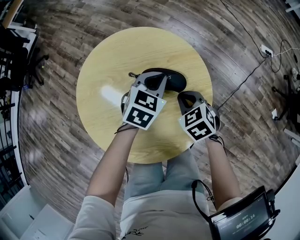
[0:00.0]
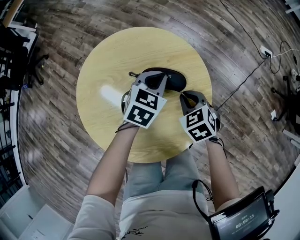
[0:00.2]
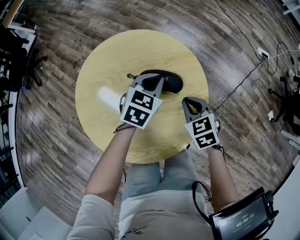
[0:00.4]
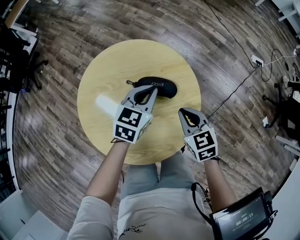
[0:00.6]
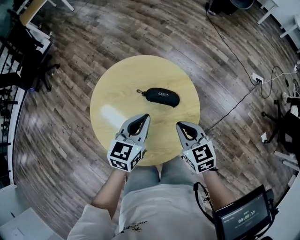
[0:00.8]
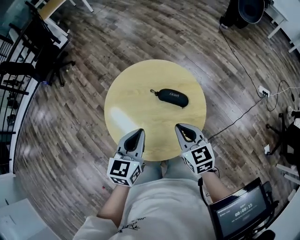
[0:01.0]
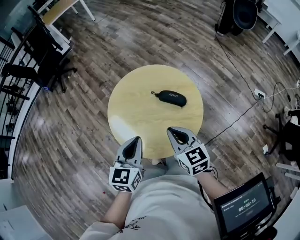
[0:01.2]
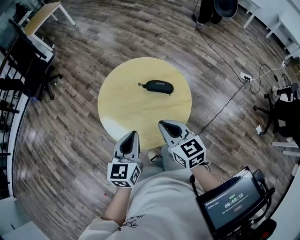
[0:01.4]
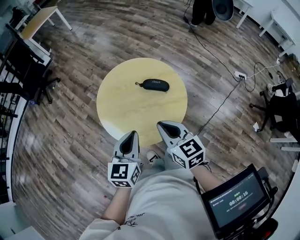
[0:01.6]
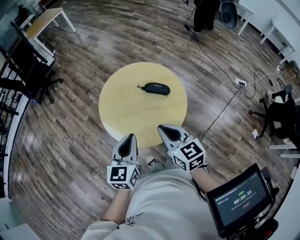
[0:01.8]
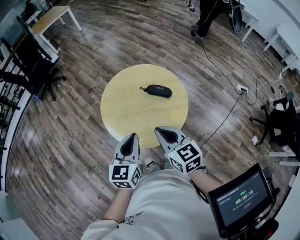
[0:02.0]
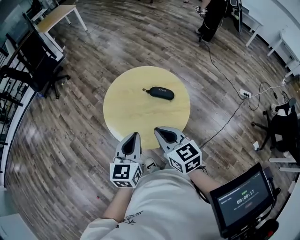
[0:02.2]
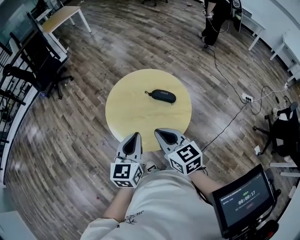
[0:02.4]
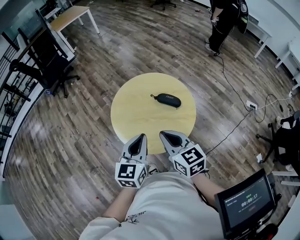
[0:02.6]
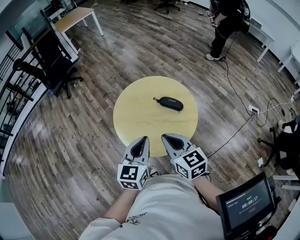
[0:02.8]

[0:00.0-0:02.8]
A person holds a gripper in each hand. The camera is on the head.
0:00.0 to 0:01.4: The right gripper shifts some 30 cm upward and backward, and tilts its fingers approximately 40 degrees upward. Meanwhile the left gripper travels backward, upward and to the left by roughly 40 cm, and changes its angle by some 40 degrees.
0:01.4 to 0:02.8: Both grippers travel together upward, approximately 5 cm.

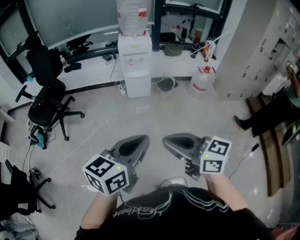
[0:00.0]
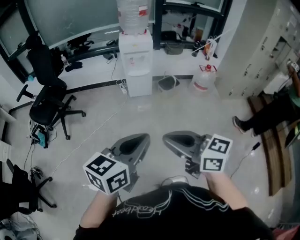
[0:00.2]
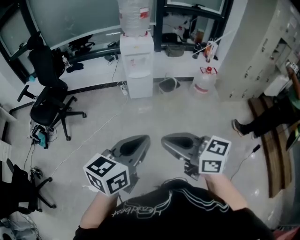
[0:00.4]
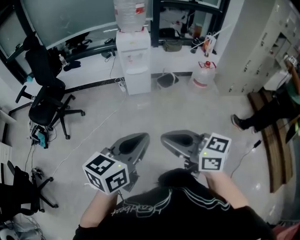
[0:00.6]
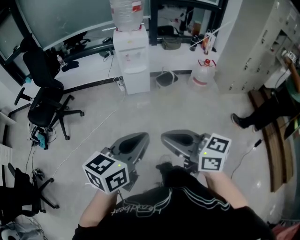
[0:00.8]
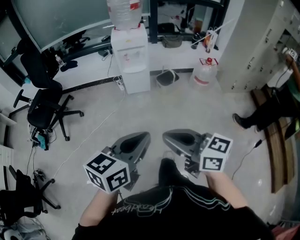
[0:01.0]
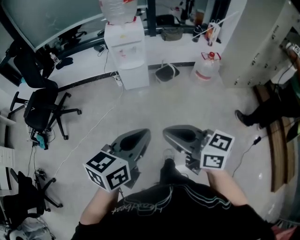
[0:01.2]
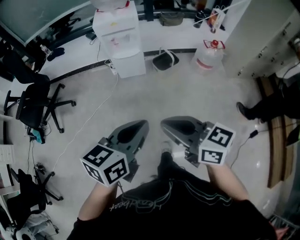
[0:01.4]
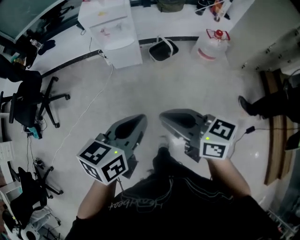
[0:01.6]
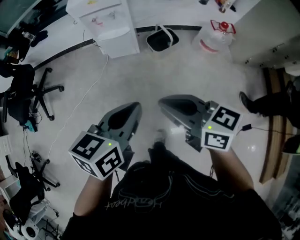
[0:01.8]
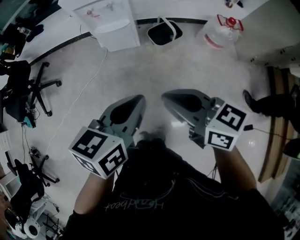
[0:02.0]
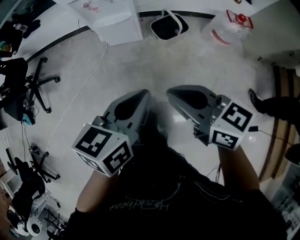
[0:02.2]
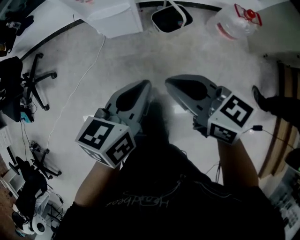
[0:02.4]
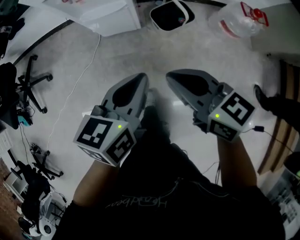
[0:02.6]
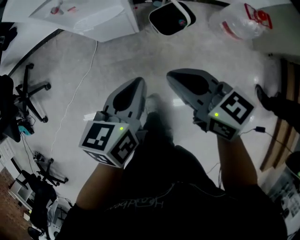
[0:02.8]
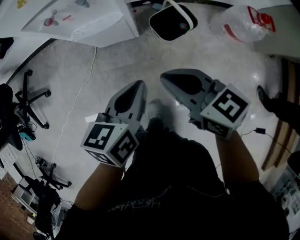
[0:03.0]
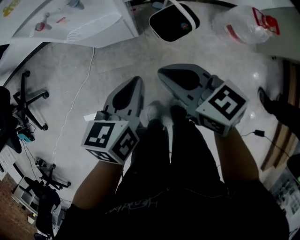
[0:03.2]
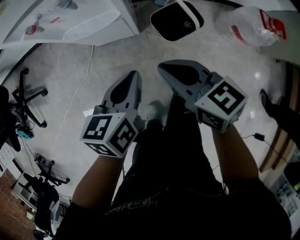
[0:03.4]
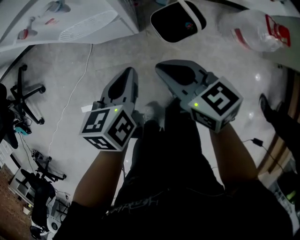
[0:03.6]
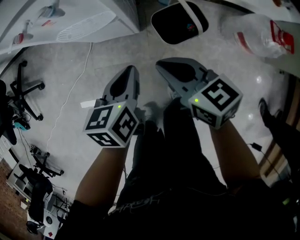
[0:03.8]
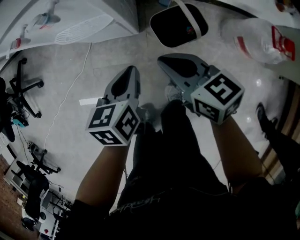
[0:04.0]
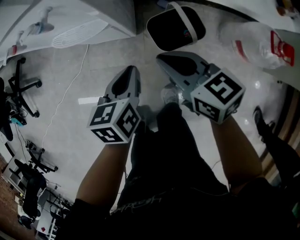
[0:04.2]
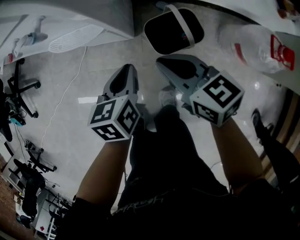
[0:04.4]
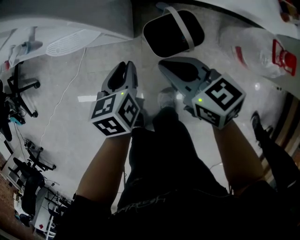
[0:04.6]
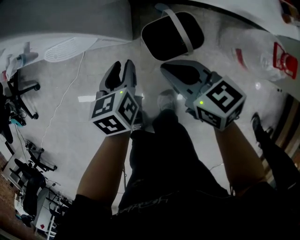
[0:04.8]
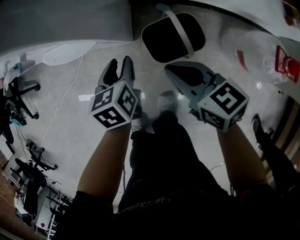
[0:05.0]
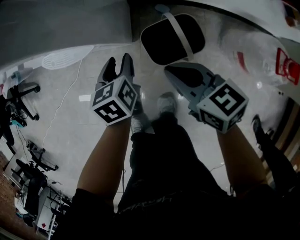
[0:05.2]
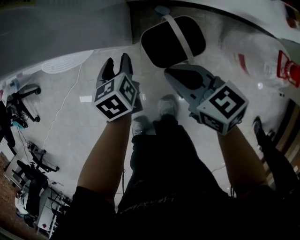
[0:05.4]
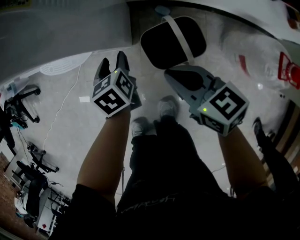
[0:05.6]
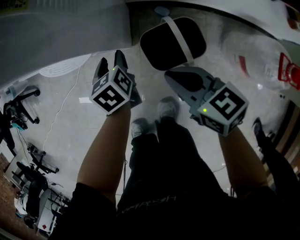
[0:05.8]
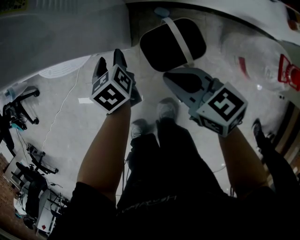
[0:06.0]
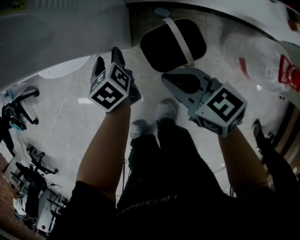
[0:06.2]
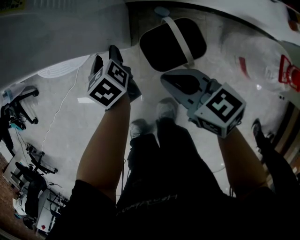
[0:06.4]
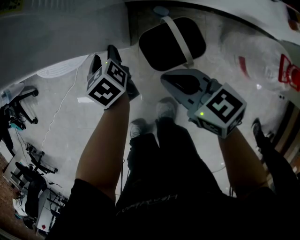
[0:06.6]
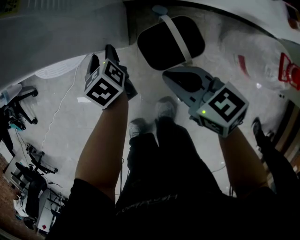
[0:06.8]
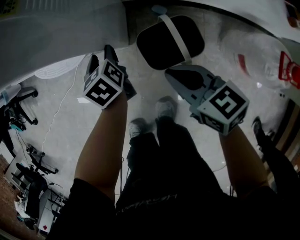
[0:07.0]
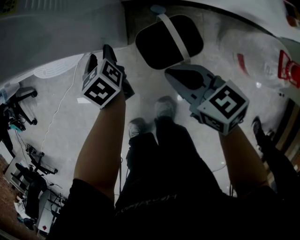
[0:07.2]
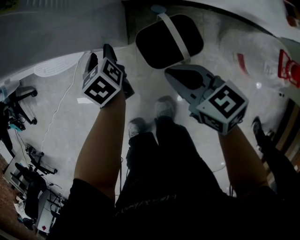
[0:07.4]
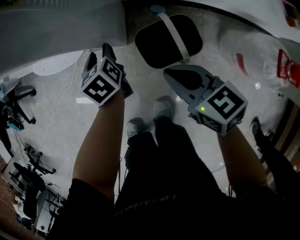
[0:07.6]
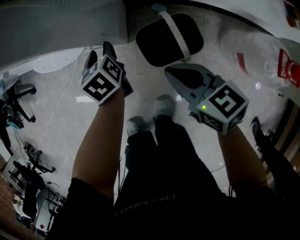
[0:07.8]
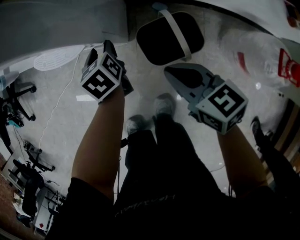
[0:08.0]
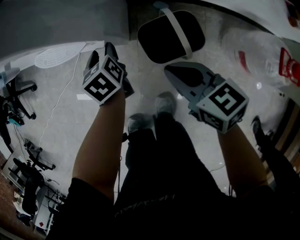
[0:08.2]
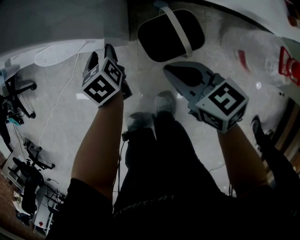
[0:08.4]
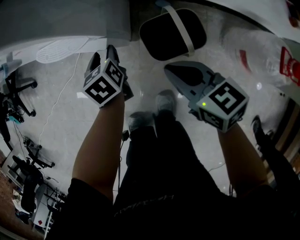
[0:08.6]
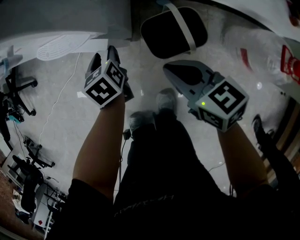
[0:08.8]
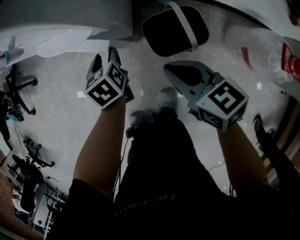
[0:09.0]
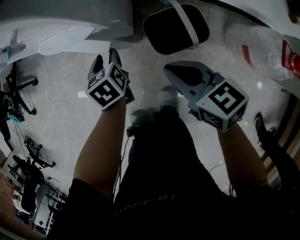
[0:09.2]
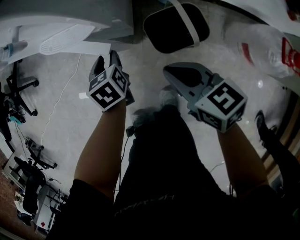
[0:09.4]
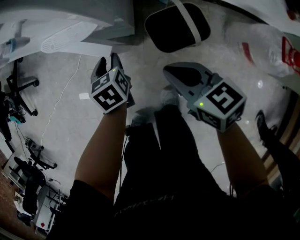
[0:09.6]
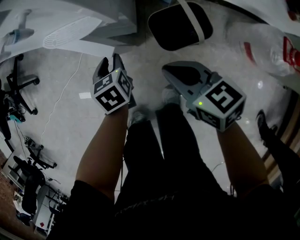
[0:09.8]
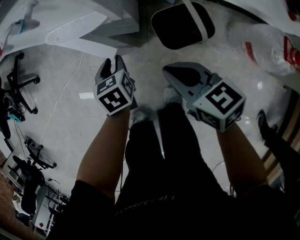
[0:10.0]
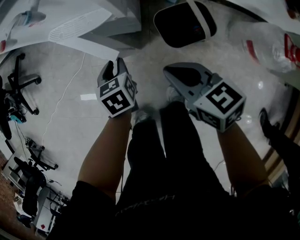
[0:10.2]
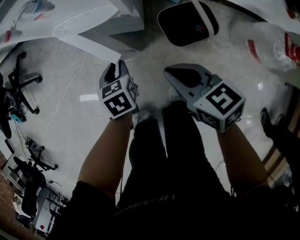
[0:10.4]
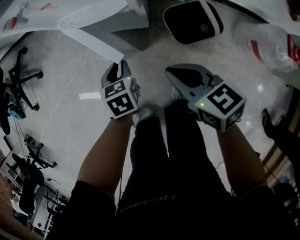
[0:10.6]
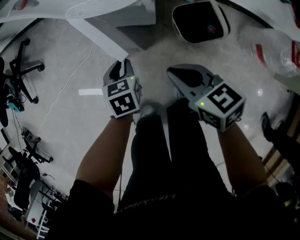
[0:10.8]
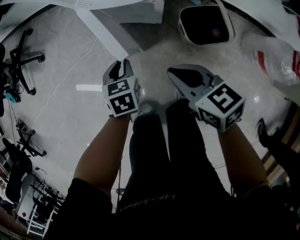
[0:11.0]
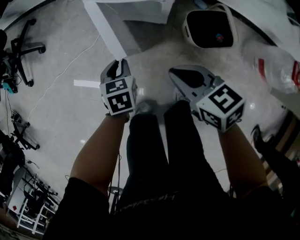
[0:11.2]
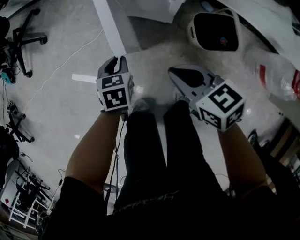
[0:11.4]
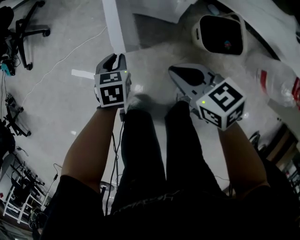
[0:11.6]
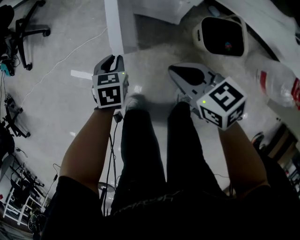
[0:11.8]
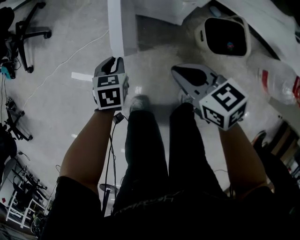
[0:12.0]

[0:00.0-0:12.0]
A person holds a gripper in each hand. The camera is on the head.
0:00.0 to 0:01.6: Both grippers move forward, to the right and downward, roughly 35 cm.
0:01.6 to 0:03.0: The two grippers go roughly 40 cm forward and downward.
0:03.0 to 0:04.4: The right gripper is displaced forward, downward and to the right by about 20 cm. Meanwhile the left gripper goes about 20 cm downward, forward and to the right, and swivels about 20 degrees.
0:04.4 to 0:06.0: The right gripper heads downward and to the right, covering about 10 cm. The left gripper is displaced forward and downward by about 15 cm, turns by roughly 20 degrees, and opens its fingers.
0:06.0 to 0:07.6: The grippers stay close to where they were, moving slightly.
0:07.6 to 0:09.0: The left gripper moves approximately 5 cm.
0:09.0 to 0:10.4: The right gripper goes some 10 cm to the left, while the left gripper heads to the left and backward, covering roughly 10 cm, and closes.
0:10.4 to 0:12.0: The two grippers go approximately 15 cm to the left.

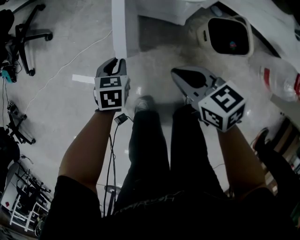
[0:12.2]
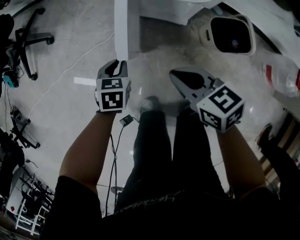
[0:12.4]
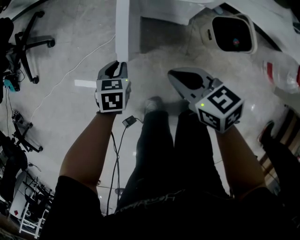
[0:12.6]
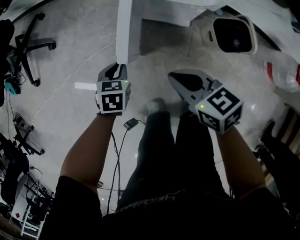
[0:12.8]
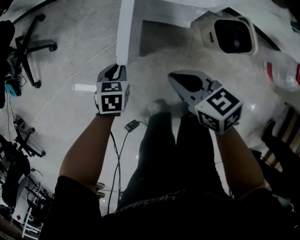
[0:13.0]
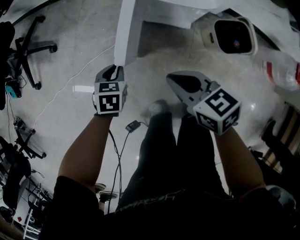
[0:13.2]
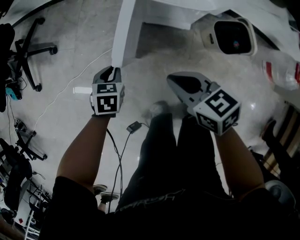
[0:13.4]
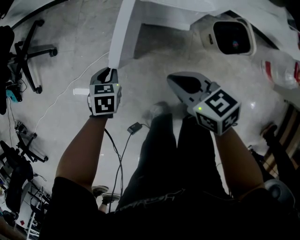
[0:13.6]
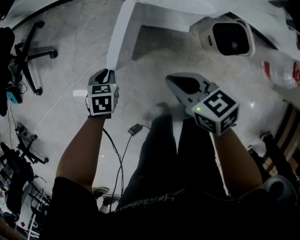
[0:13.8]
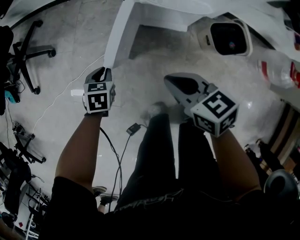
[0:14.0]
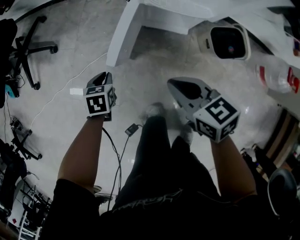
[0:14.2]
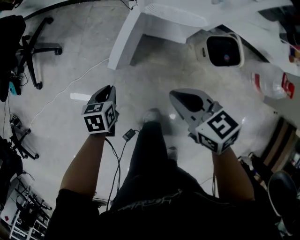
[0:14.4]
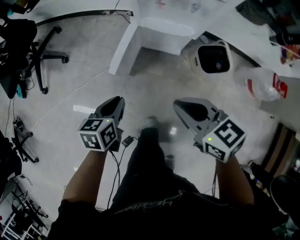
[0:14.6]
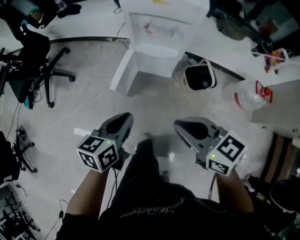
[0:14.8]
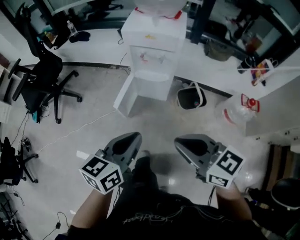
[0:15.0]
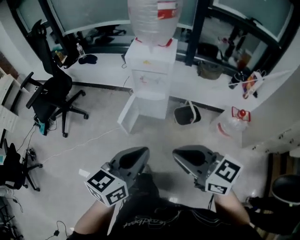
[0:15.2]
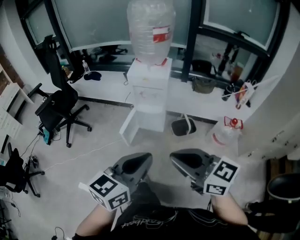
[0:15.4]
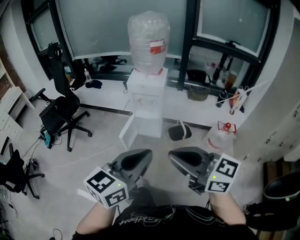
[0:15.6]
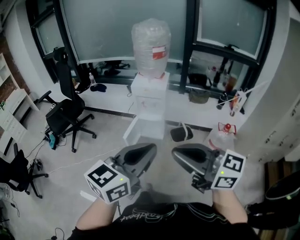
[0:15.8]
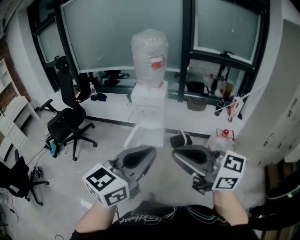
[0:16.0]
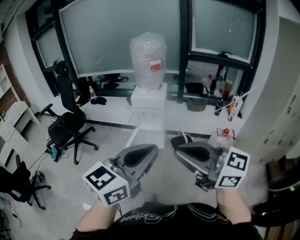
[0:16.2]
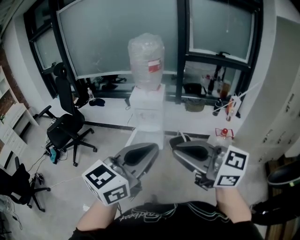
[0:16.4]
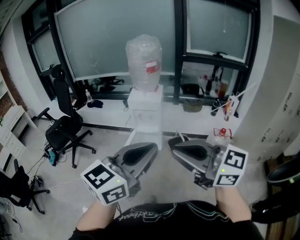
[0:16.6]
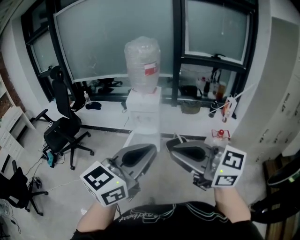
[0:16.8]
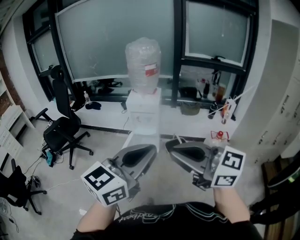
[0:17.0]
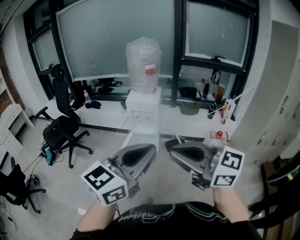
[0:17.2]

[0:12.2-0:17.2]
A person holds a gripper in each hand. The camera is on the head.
0:12.2 to 0:13.8: The grippers both shift to the left and forward by roughly 10 cm.
0:13.8 to 0:15.6: The pair of grippers is taken backward, about 50 cm. Both grippers travel together upward, approximately 70 cm. The right gripper tips its fingers upward by approximately 40 degrees, while the left gripper angles its fingers upward, by about 60 degrees.
0:15.6 to 0:17.2: The two grippers go some 15 cm upward and backward.

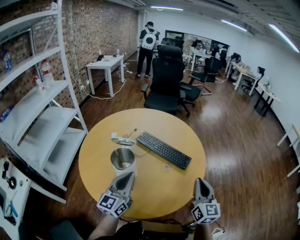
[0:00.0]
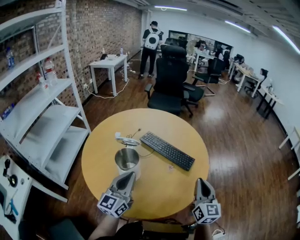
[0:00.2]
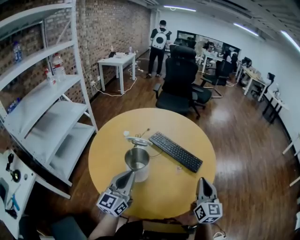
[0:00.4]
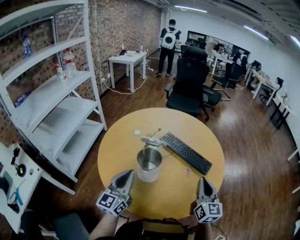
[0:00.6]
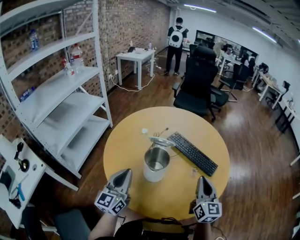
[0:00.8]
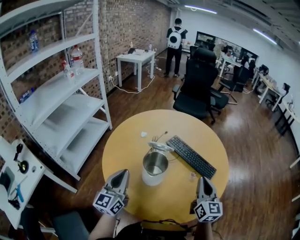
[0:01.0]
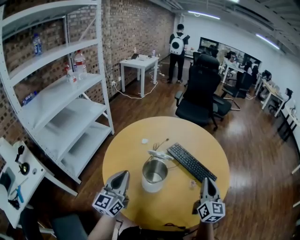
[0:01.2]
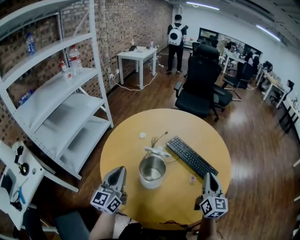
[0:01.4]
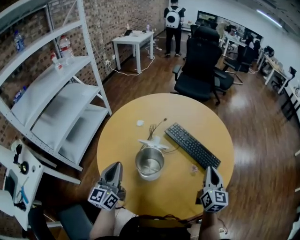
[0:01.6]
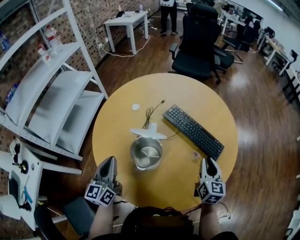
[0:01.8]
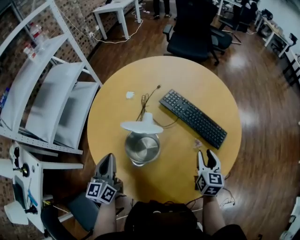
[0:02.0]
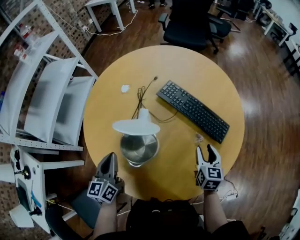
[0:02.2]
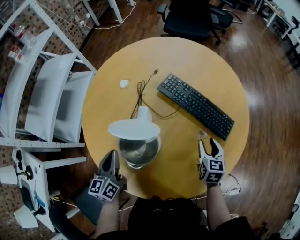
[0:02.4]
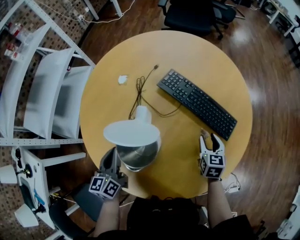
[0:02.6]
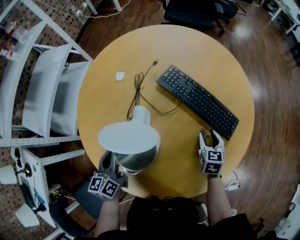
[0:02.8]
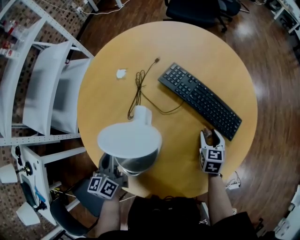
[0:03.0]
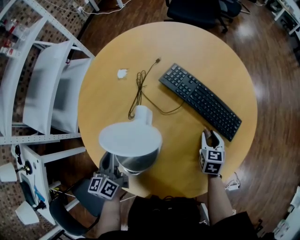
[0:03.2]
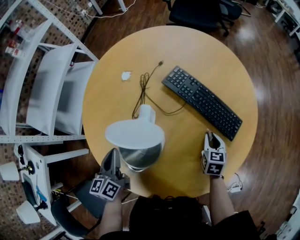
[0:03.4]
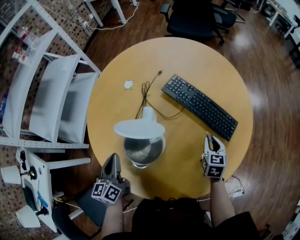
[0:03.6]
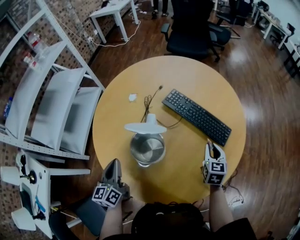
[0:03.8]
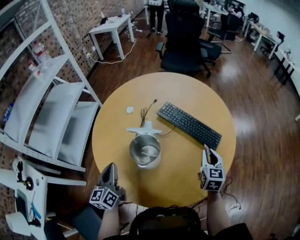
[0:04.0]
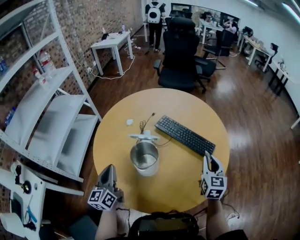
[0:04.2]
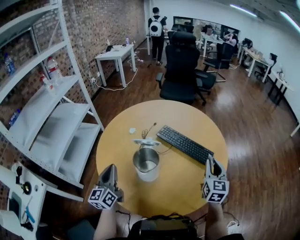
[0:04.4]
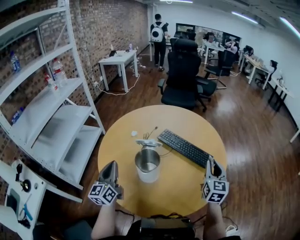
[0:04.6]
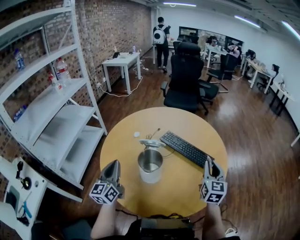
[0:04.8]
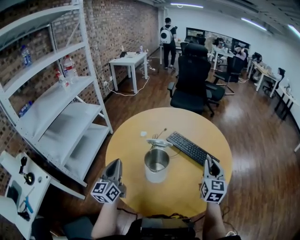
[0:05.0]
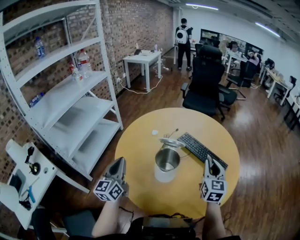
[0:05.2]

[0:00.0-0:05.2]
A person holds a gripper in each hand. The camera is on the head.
0:00.0 to 0:01.8: The left gripper shifts some 20 cm to the left, and swivels about 20 degrees. Meanwhile the right gripper heads forward, downward and to the left, covering roughly 20 cm.
0:01.8 to 0:03.4: The right gripper is displaced downward by roughly 20 cm, rotates roughly 30 degrees, and opens and closes again; the left gripper moves downward, approximately 10 cm.
0:03.4 to 0:05.2: The right gripper heads upward, covering about 30 cm, and tilts its fingers about 40 degrees upward; the left gripper goes approximately 20 cm upward, and changes its angle by roughly 30 degrees.
